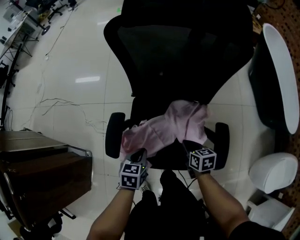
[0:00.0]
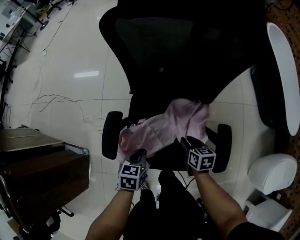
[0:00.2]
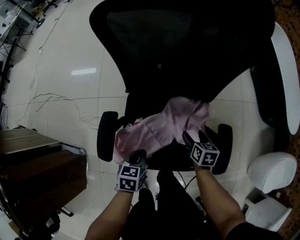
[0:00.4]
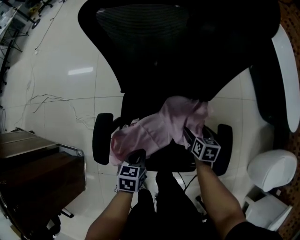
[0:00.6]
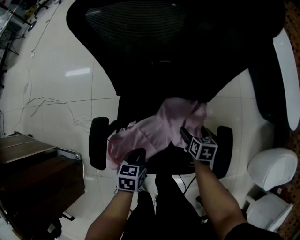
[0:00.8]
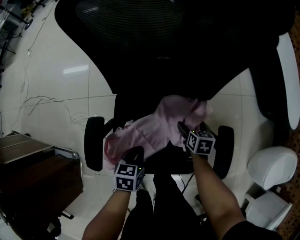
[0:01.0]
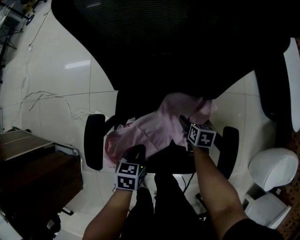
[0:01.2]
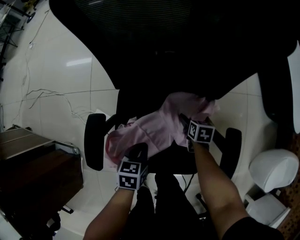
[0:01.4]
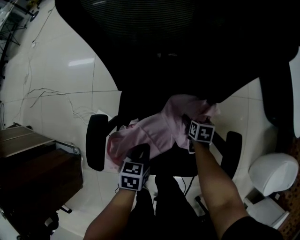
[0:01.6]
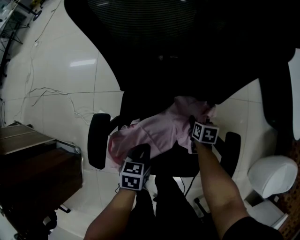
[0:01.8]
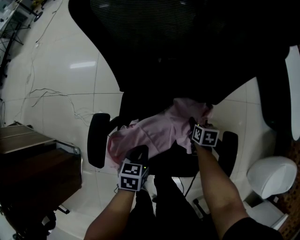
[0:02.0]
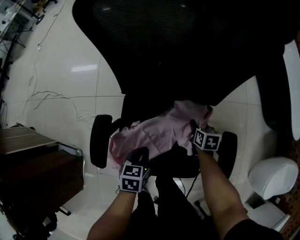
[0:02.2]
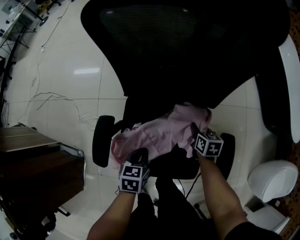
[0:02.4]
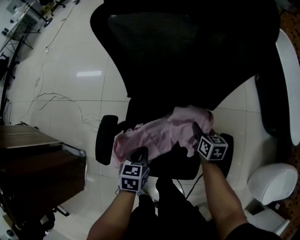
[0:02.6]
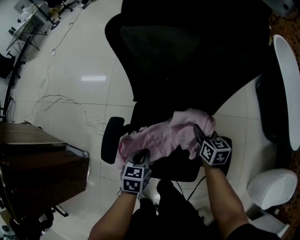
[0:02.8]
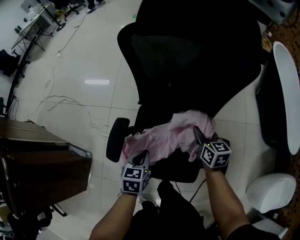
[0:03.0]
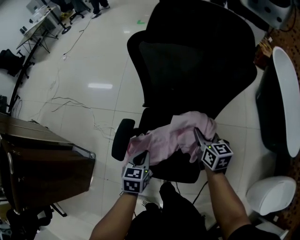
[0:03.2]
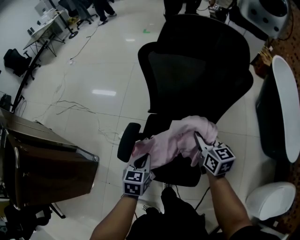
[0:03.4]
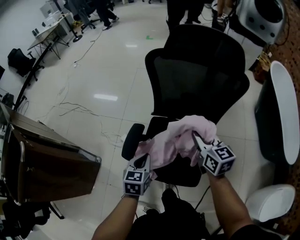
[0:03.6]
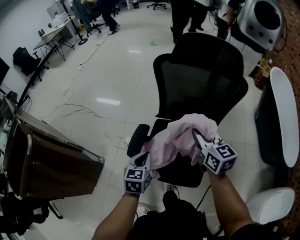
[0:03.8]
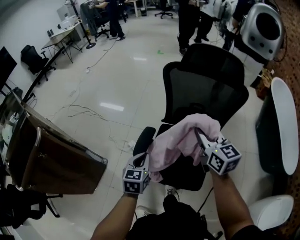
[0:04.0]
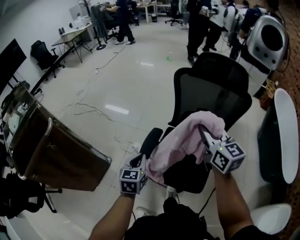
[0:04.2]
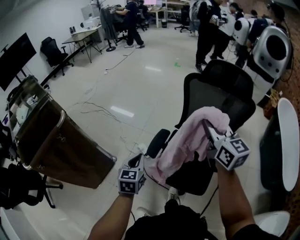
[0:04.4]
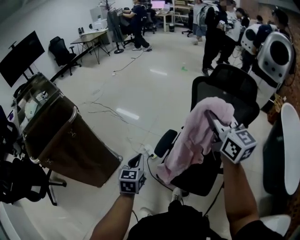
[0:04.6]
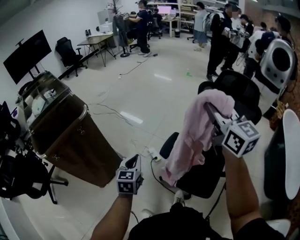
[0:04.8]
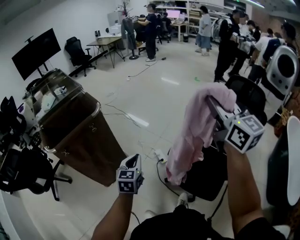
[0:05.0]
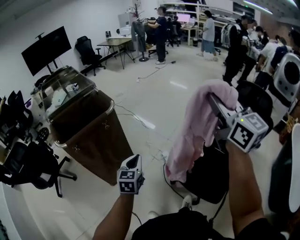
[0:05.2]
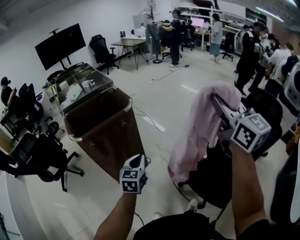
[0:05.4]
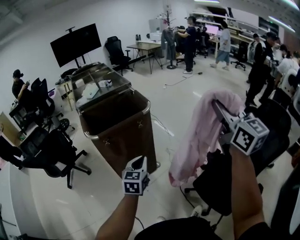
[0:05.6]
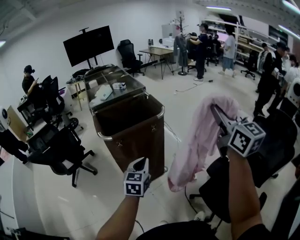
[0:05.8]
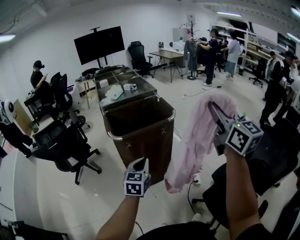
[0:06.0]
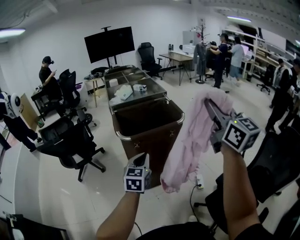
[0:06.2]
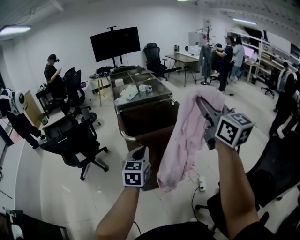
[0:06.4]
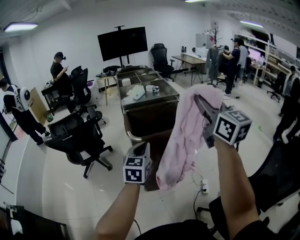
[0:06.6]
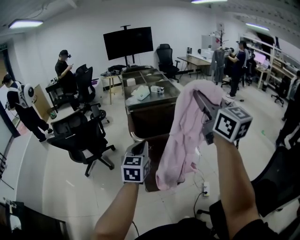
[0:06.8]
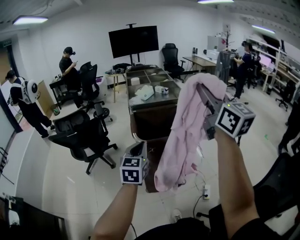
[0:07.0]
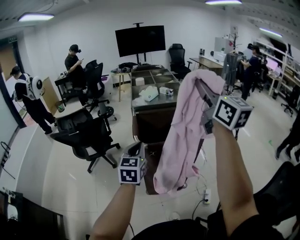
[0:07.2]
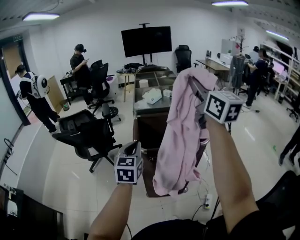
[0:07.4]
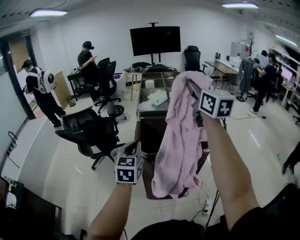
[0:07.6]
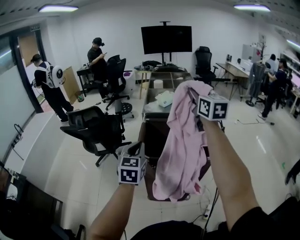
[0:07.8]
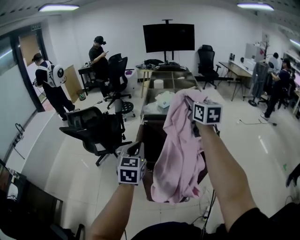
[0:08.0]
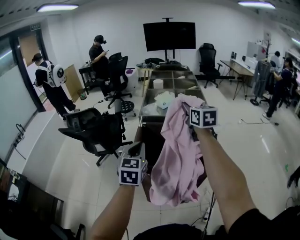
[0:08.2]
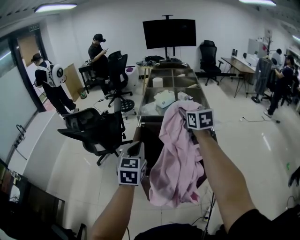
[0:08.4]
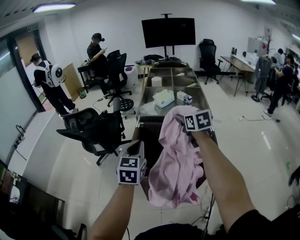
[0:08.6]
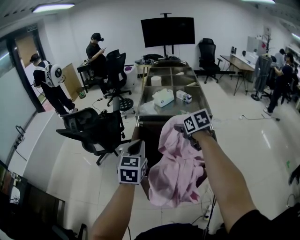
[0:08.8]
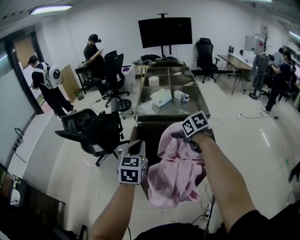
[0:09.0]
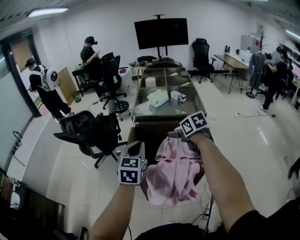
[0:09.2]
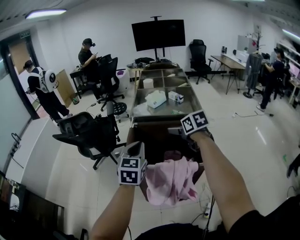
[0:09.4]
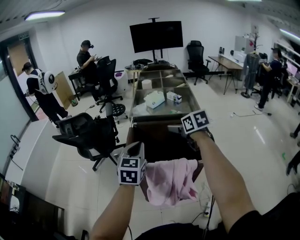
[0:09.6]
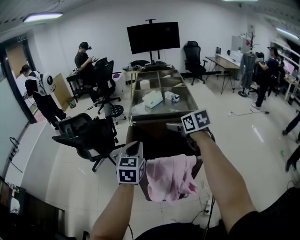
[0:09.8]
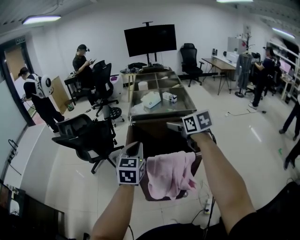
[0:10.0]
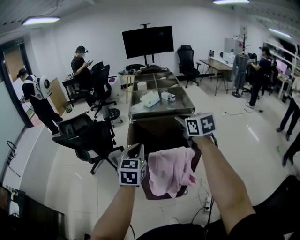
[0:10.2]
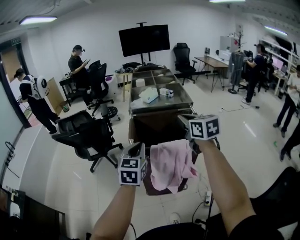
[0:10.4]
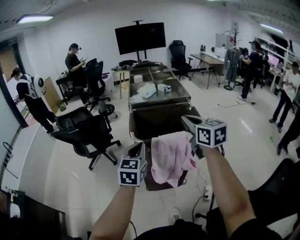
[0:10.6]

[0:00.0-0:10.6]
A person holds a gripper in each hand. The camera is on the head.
0:00.0 to 0:01.6: The right gripper moves downward and forward, about 25 cm, swivels approximately 20 degrees, and opens up, while the left gripper heads downward and forward, covering roughly 10 cm.
0:01.6 to 0:03.0: The right gripper heads upward, covering roughly 25 cm, tilts its fingers about 30 degrees upward, and closes its fingers; the left gripper shifts roughly 15 cm upward.
0:03.0 to 0:04.6: The right gripper heads upward, covering some 40 cm, and tips its fingers upward by about 30 degrees. Meanwhile the left gripper moves about 35 cm, and turns by roughly 30 degrees.
0:04.6 to 0:06.0: The right gripper changes place by roughly 40 cm, and turns by about 30 degrees. Meanwhile the left gripper moves approximately 40 cm, and swivels roughly 30 degrees.
0:06.0 to 0:07.6: The right gripper shifts by about 40 cm, and changes its angle by about 20 degrees. Meanwhile the left gripper shifts by approximately 25 cm, and turns by about 30 degrees.
0:07.6 to 0:09.0: The left gripper is displaced forward and to the right by some 10 cm. The right gripper heads downward, covering about 30 cm, tilts its fingers about 50 degrees downward, and opens.
0:09.0 to 0:10.6: The right gripper moves backward and upward, some 30 cm, tips its fingers upward by roughly 30 degrees, and closes up, while the left gripper heads backward, covering approximately 15 cm.

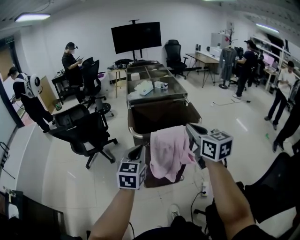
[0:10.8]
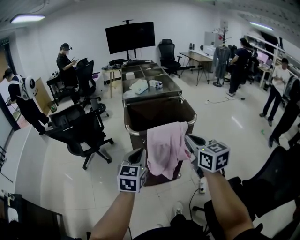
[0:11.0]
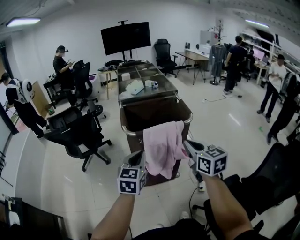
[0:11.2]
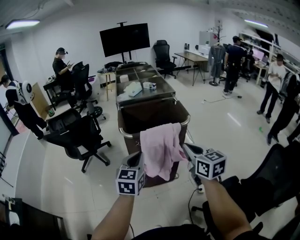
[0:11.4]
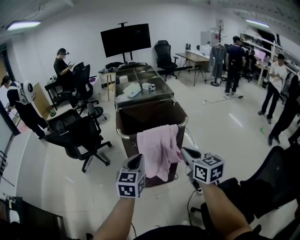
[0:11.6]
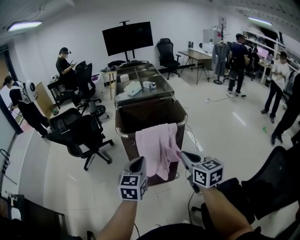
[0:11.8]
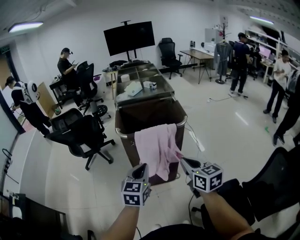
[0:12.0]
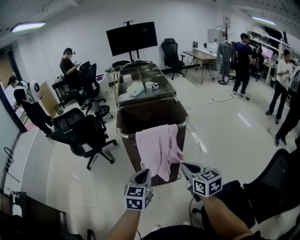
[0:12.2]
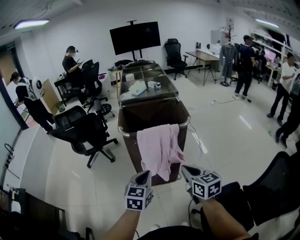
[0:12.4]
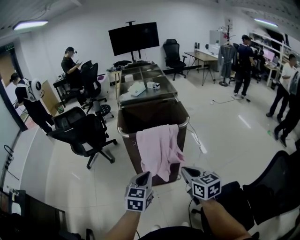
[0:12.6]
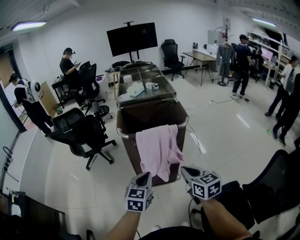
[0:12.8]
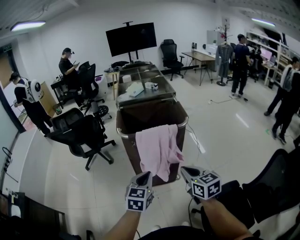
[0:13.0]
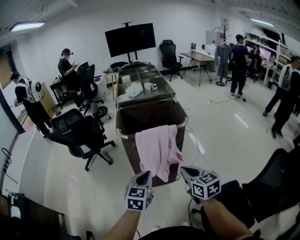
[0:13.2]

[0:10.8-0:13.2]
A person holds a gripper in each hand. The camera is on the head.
0:10.8 to 0:12.0: The right gripper moves downward and backward, approximately 15 cm, while the left gripper is displaced to the right, backward and downward by about 15 cm.
0:12.0 to 0:13.2: The grippers move only a little.

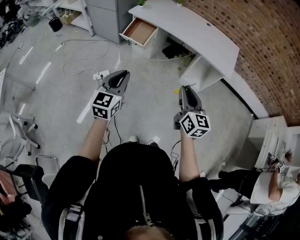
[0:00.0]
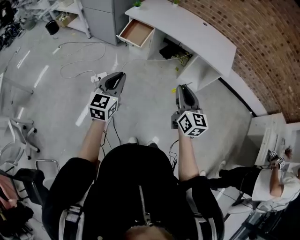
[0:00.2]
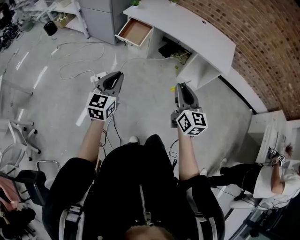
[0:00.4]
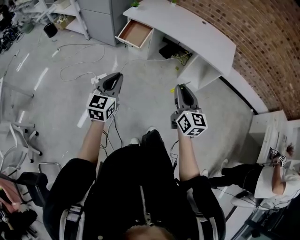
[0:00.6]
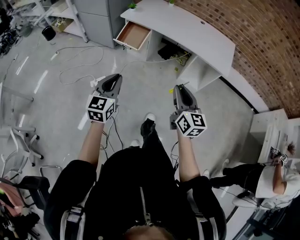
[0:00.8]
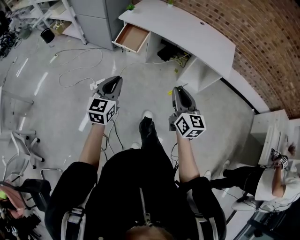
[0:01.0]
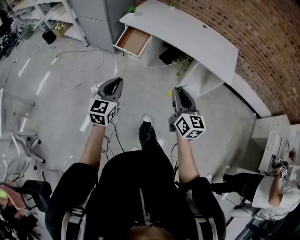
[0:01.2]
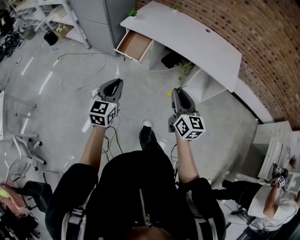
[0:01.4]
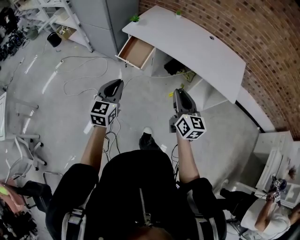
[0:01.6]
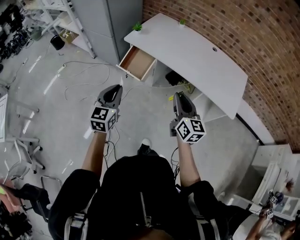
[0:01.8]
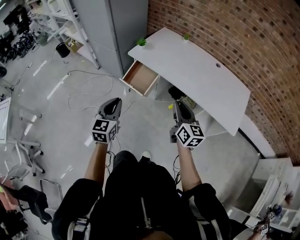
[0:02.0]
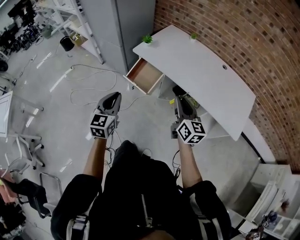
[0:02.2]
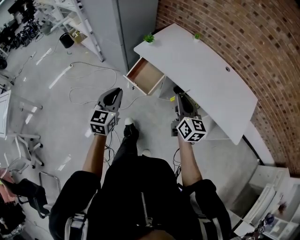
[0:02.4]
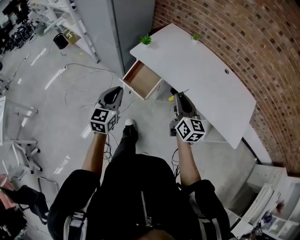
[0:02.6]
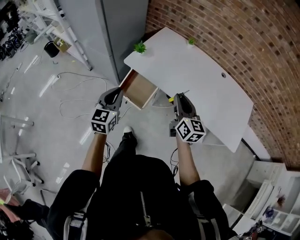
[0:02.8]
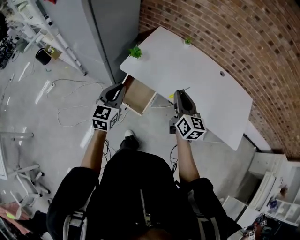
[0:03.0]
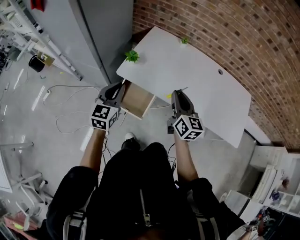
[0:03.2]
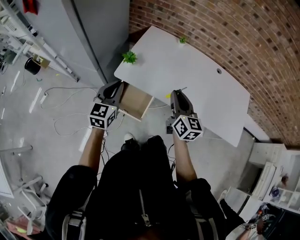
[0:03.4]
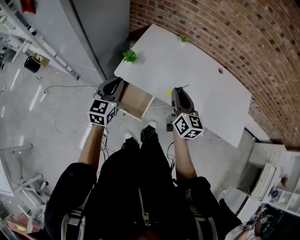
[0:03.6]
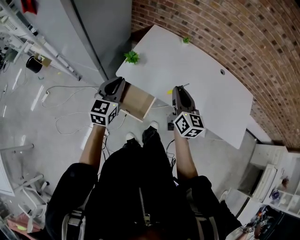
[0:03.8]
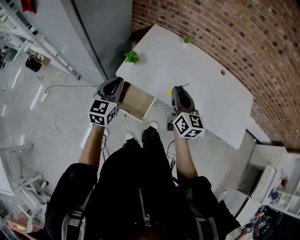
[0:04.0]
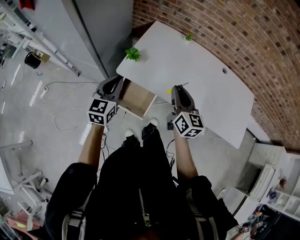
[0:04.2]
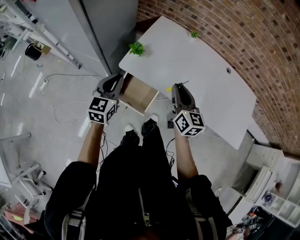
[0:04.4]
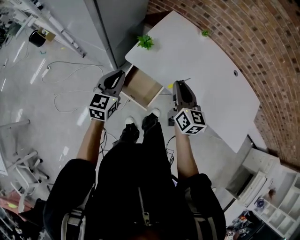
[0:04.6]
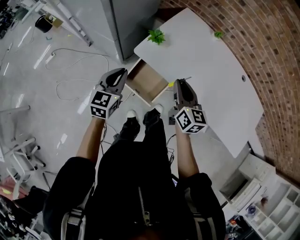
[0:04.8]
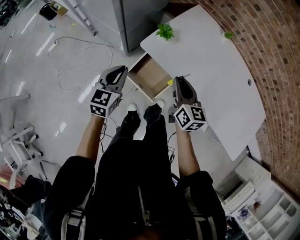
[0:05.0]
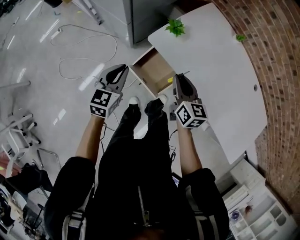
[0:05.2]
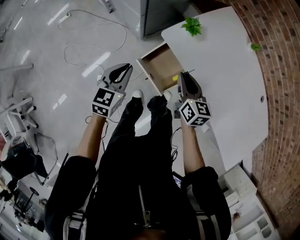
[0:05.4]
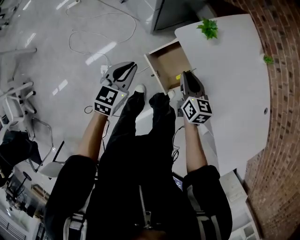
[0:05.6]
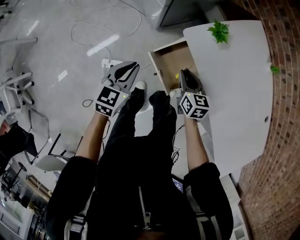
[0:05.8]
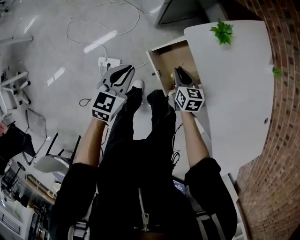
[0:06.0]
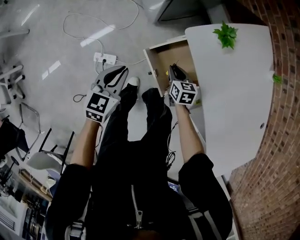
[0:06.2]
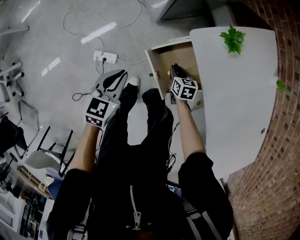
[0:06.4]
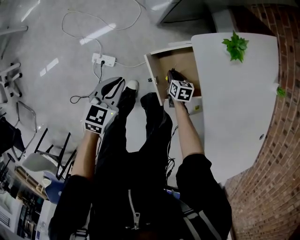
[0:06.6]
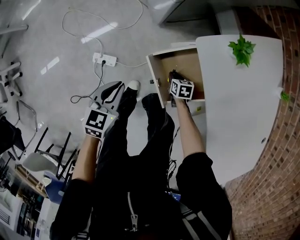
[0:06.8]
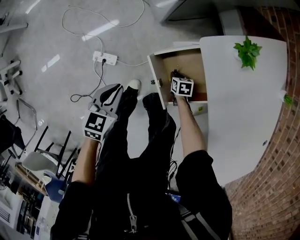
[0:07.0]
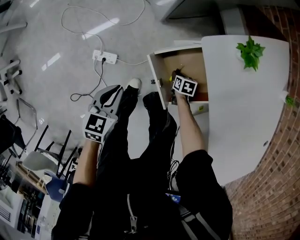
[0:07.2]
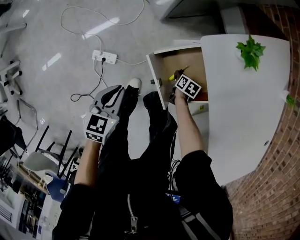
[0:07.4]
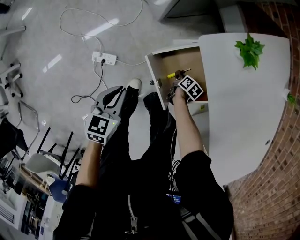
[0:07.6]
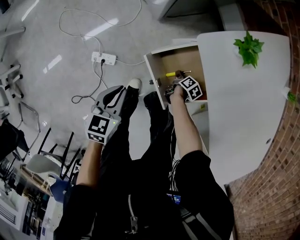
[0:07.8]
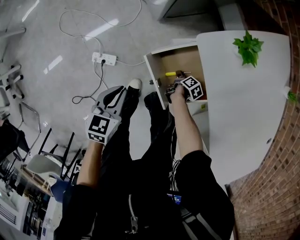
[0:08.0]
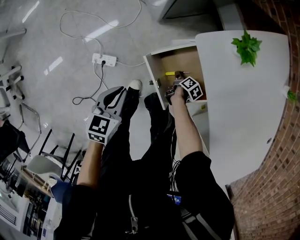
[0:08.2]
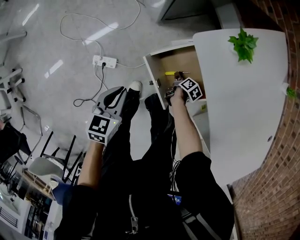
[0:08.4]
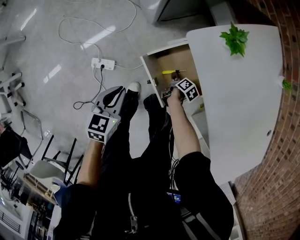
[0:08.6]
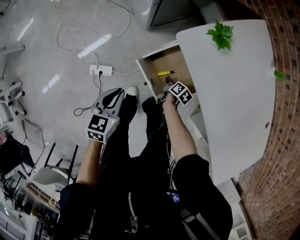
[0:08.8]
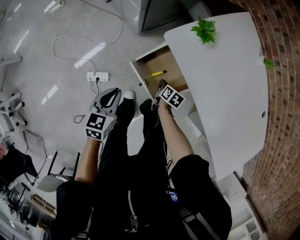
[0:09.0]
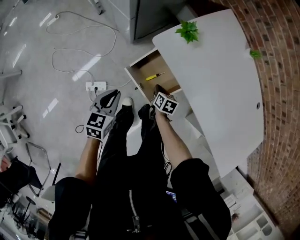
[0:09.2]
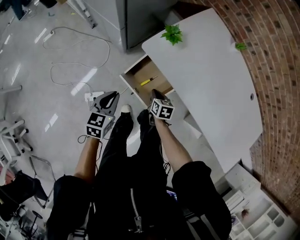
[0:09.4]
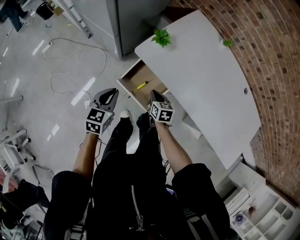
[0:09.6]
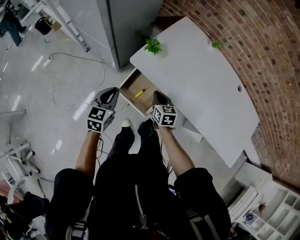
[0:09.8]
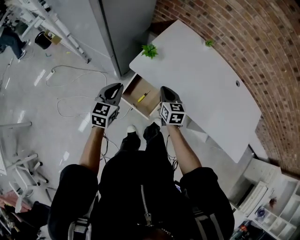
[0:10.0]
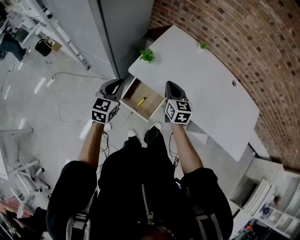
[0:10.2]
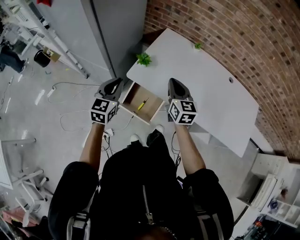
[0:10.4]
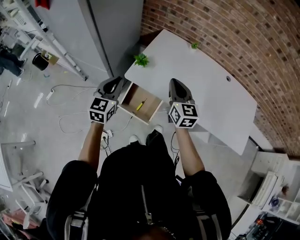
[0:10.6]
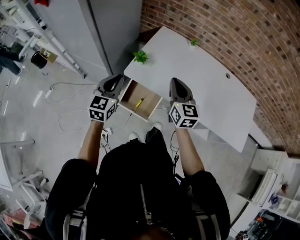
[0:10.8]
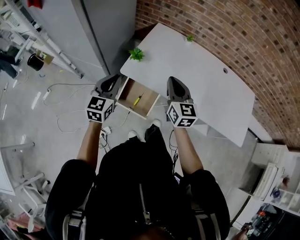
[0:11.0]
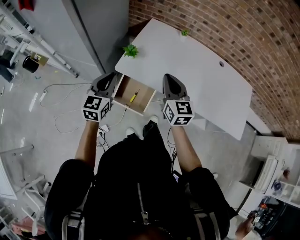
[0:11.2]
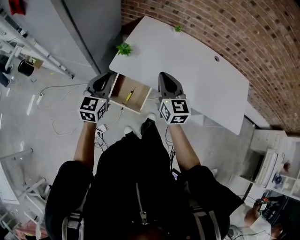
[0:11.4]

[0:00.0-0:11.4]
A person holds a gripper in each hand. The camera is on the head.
0:00.0 to 0:01.4: Both grippers travel together forward, roughly 15 cm.
0:01.4 to 0:02.8: The grippers both shift forward by about 40 cm.
0:02.8 to 0:04.2: The left gripper moves forward, approximately 20 cm, while the right gripper heads forward and to the left, covering roughly 15 cm.
0:04.2 to 0:05.6: The grippers both shift downward by approximately 20 cm. The left gripper changes its angle by roughly 30 degrees, while the right gripper changes its angle by some 40 degrees.
0:05.6 to 0:07.2: The right gripper heads downward, covering some 40 cm, and angles its fingers downward, by roughly 40 degrees. The left gripper heads downward, covering roughly 20 cm, and swivels about 20 degrees.
0:07.2 to 0:08.6: The right gripper rolls clockwise, seen from behind, by some 50 degrees.
0:08.6 to 0:10.0: The left gripper heads upward, covering approximately 25 cm, and changes its angle by roughly 30 degrees; the right gripper shifts about 40 cm upward, angles its fingers upward, by some 30 degrees, and closes up.
0:10.0 to 0:11.4: The left gripper goes some 10 cm upward. Meanwhile the right gripper goes some 15 cm upward, and turns by approximately 20 degrees.
